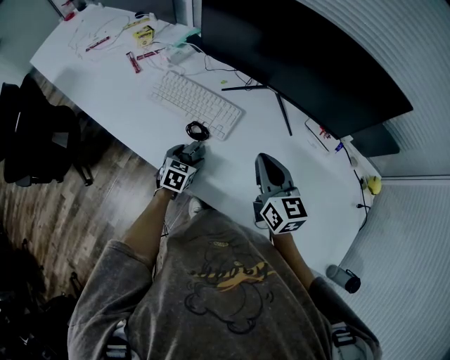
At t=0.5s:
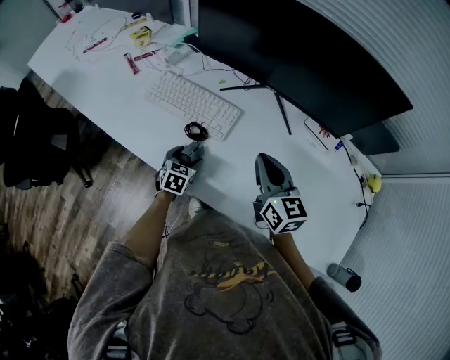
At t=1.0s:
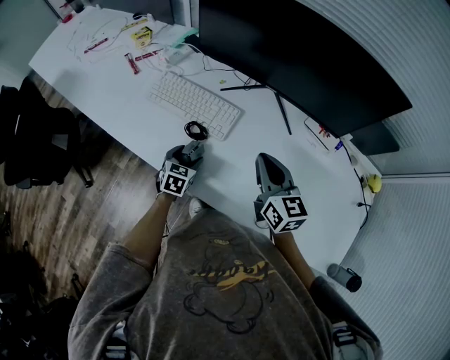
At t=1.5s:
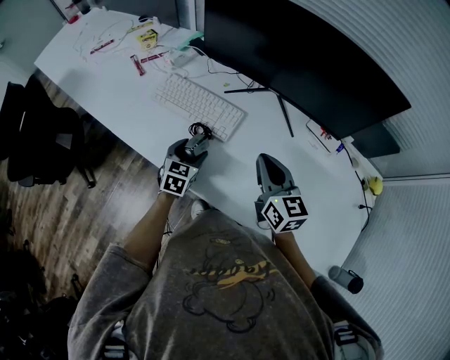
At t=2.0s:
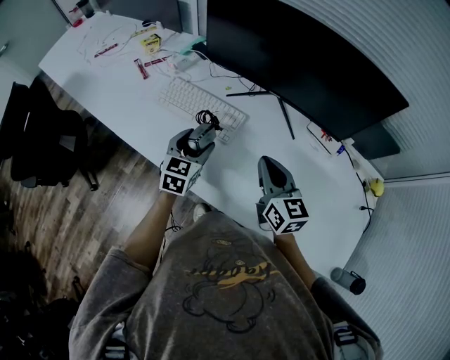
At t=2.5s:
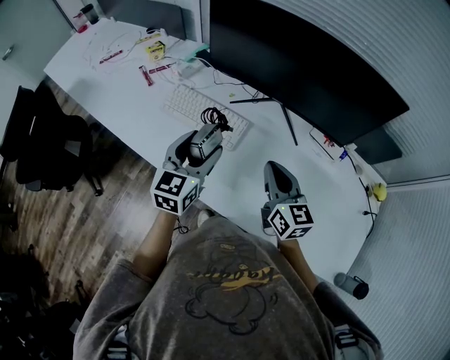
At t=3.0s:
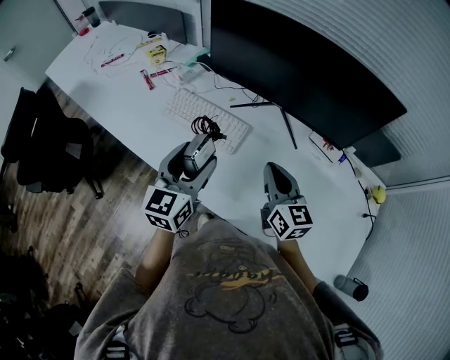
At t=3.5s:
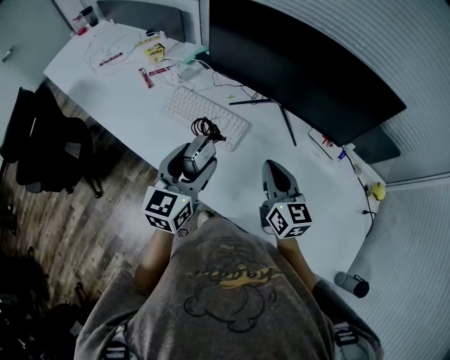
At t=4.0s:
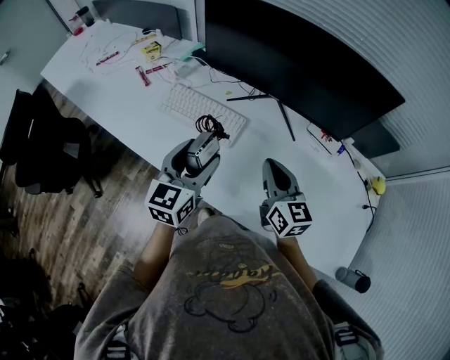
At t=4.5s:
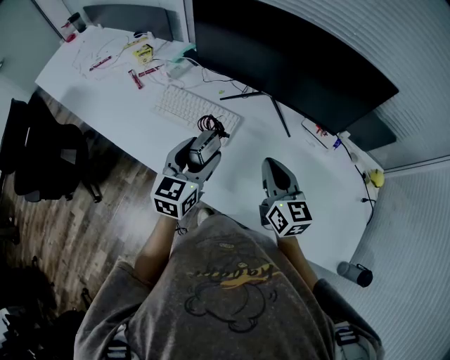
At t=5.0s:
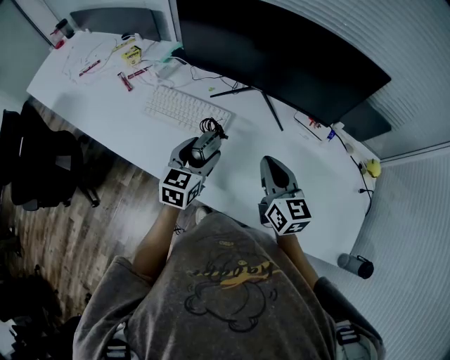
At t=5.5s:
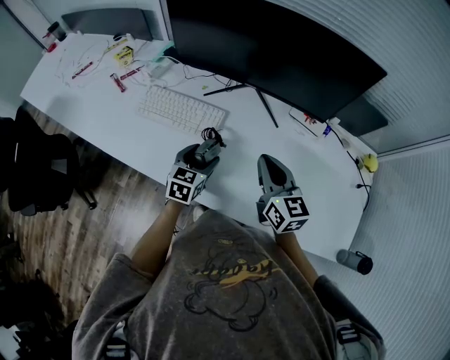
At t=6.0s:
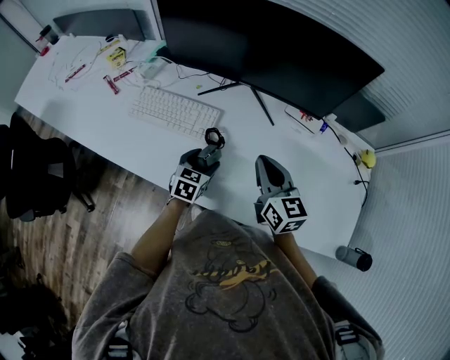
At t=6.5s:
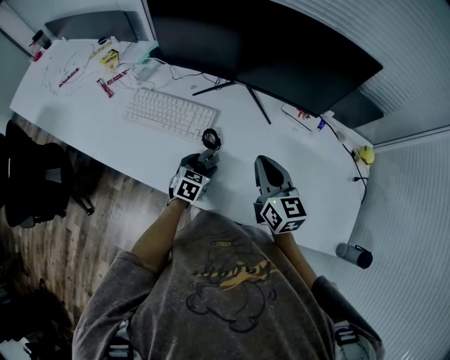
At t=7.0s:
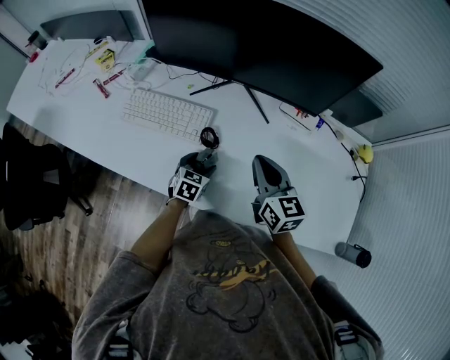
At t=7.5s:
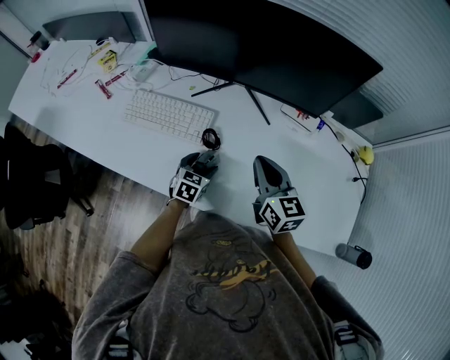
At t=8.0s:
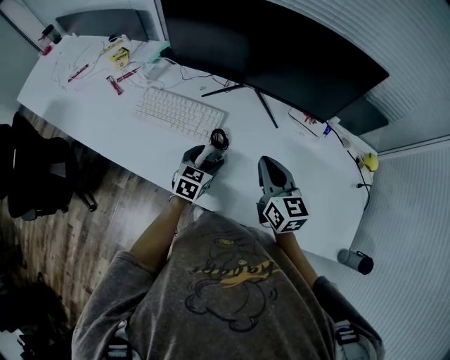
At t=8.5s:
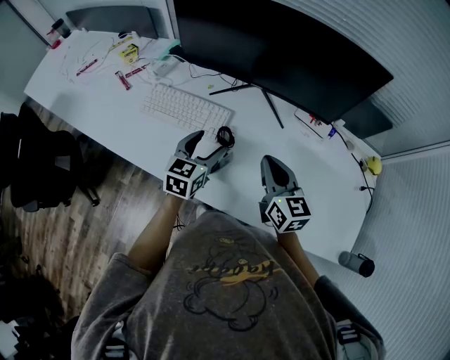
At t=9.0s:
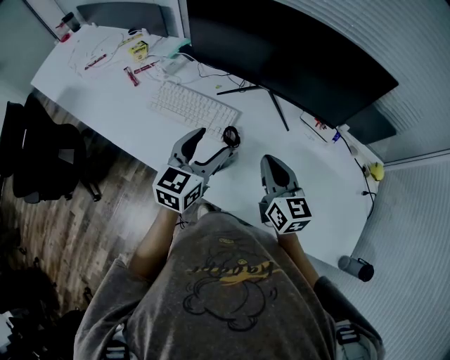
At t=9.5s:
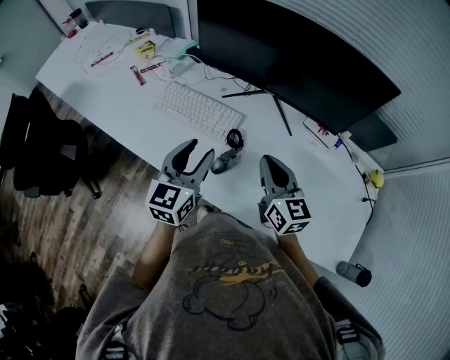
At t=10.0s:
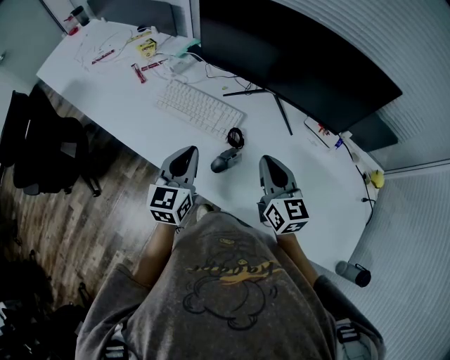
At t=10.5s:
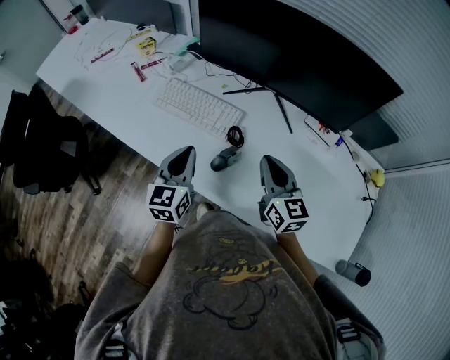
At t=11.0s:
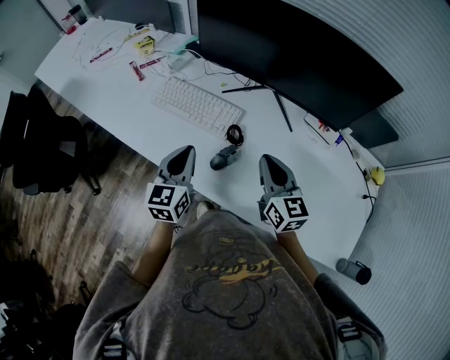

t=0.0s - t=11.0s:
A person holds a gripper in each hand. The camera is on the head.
t=0.0s - t=2.0s: The left gripper travels upward by about 15 cm, and turns by approximately 20 degrees.
t=2.0s - t=3.5s: The left gripper travels upward and backward by about 15 cm.
t=3.5s - t=5.5s: The left gripper goes roughly 20 cm downward and to the right, and swivels approximately 30 degrees.
t=5.5s - t=7.5s: The left gripper goes approximately 10 cm downward.
t=7.5s - t=9.0s: The left gripper shifts some 25 cm upward, and rotates about 30 degrees.
t=9.0s - t=11.0s: The left gripper travels to the left by some 10 cm, and closes.

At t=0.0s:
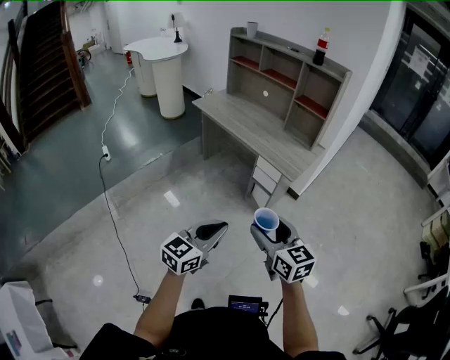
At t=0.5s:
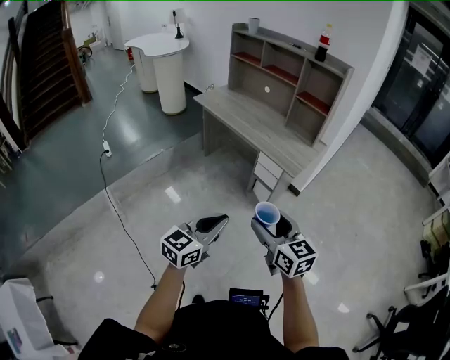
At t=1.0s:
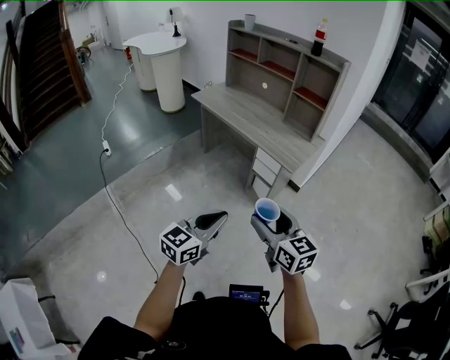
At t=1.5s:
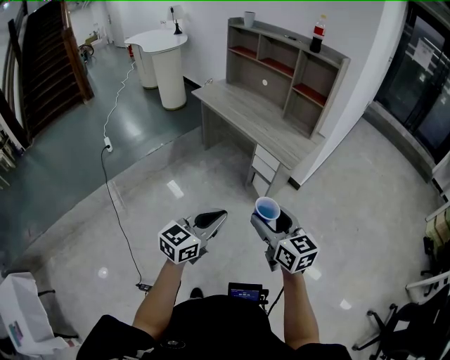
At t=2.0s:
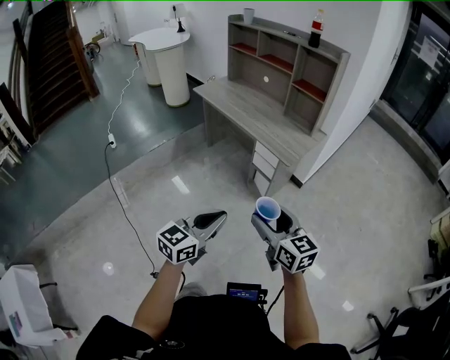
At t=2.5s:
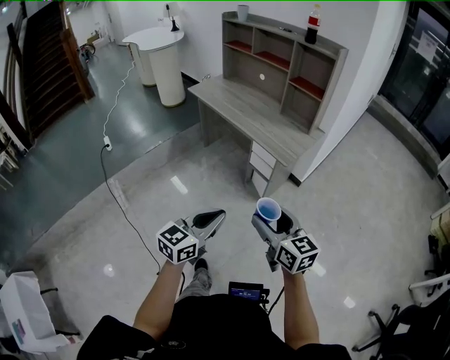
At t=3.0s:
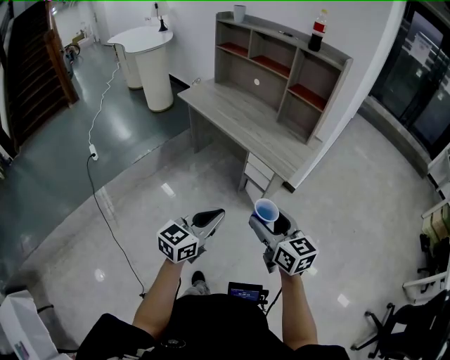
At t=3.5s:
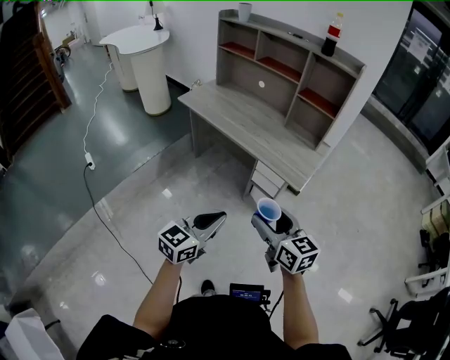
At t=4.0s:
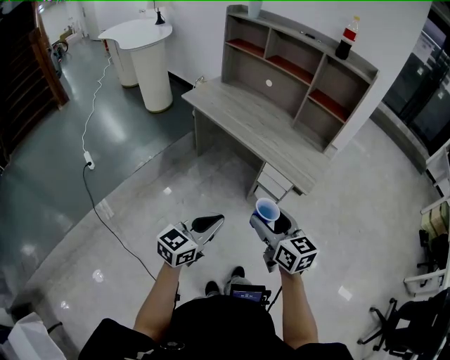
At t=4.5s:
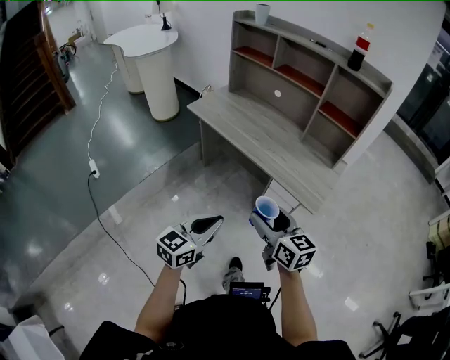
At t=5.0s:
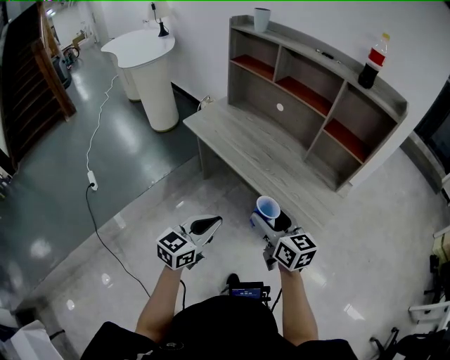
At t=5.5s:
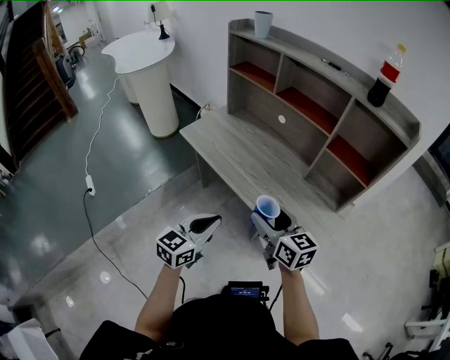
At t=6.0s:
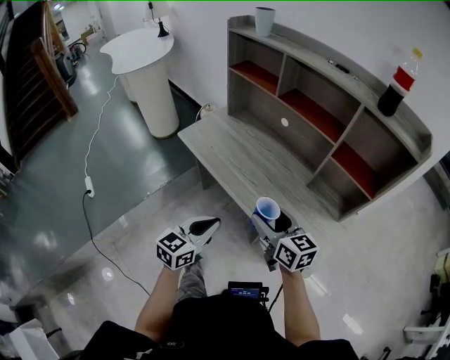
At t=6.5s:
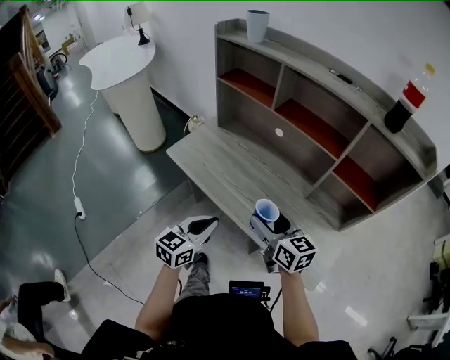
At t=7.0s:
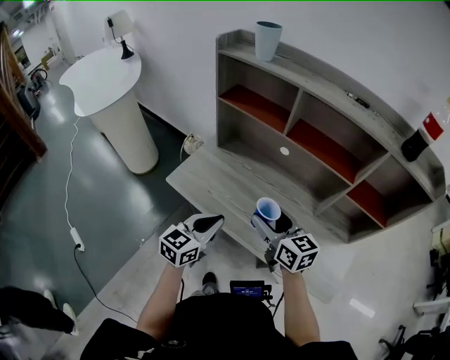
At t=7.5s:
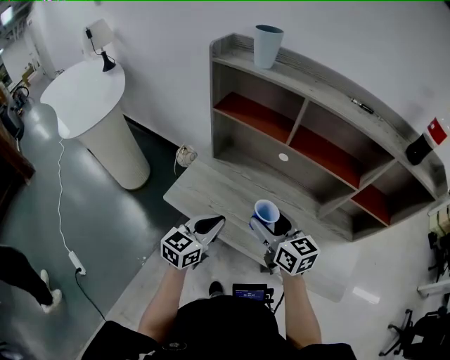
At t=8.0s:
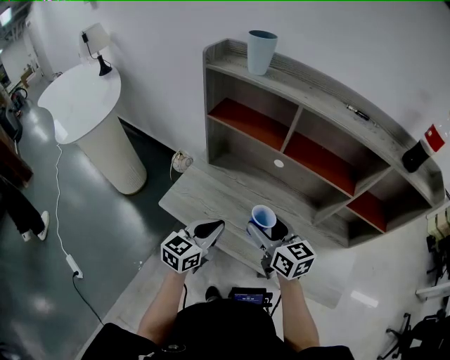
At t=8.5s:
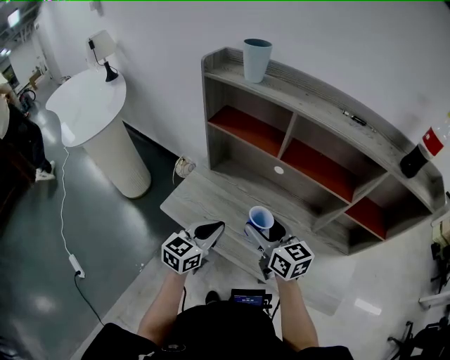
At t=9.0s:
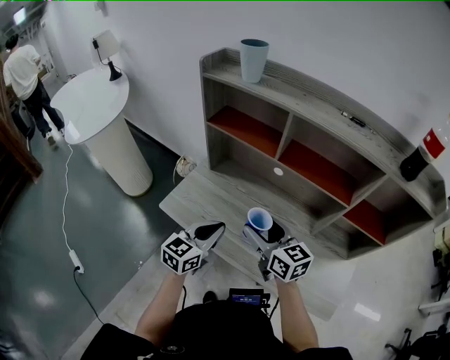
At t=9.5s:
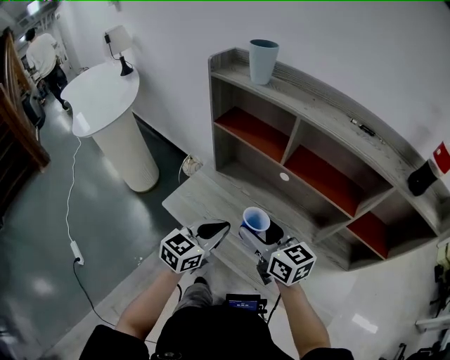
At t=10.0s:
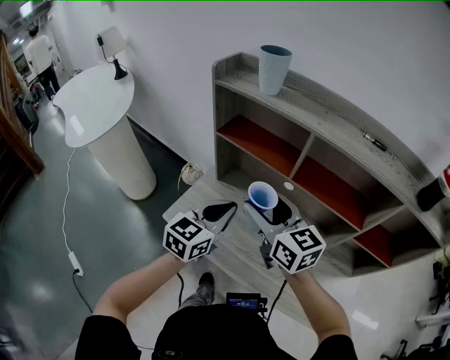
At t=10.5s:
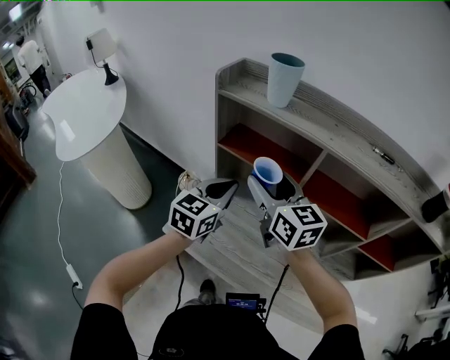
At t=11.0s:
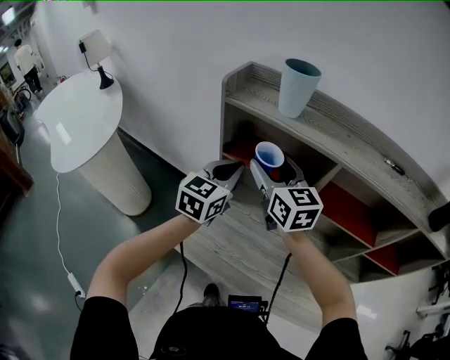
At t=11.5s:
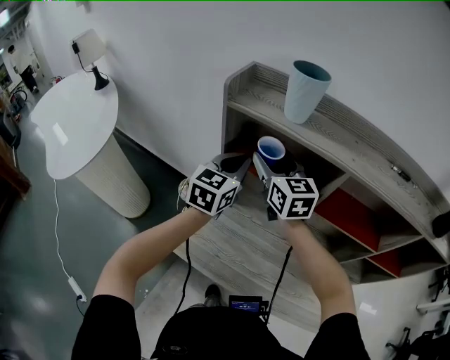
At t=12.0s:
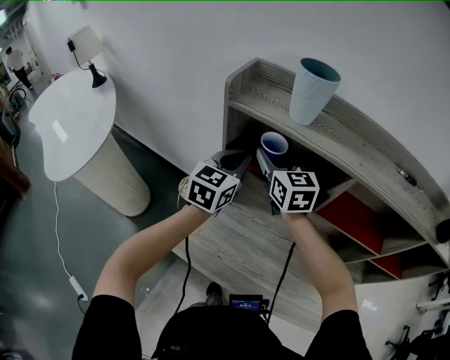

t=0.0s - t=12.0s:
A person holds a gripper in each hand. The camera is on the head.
t=0.0s - t=2.0s: The grippers both shift to the right by about 10 cm.
t=2.0s - t=4.0s: Both grippers travel together forward and to the left, roughly 30 cm.
t=4.0s - t=6.0s: The grippers both shift forward by about 40 cm.
t=6.0s - t=8.0s: Both grippers move forward and to the left, roughly 30 cm.
t=8.0s - t=10.0s: The right gripper shifts about 15 cm upward and forward. Meanwhile the left gripper is displaced forward and upward by some 15 cm.
t=10.0s - t=12.0s: The two grippers go roughly 25 cm forward. The right gripper rotates roughly 20 degrees.

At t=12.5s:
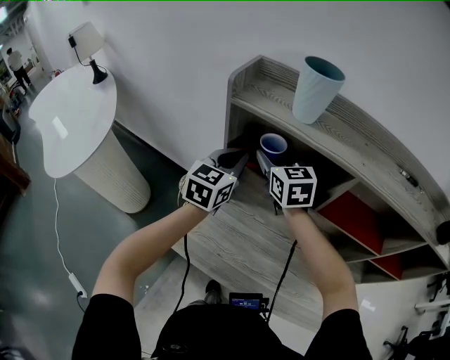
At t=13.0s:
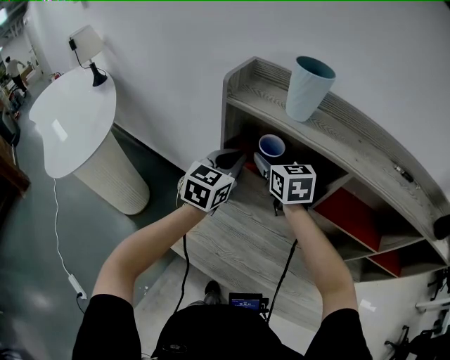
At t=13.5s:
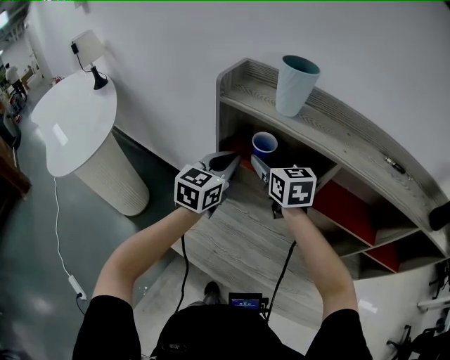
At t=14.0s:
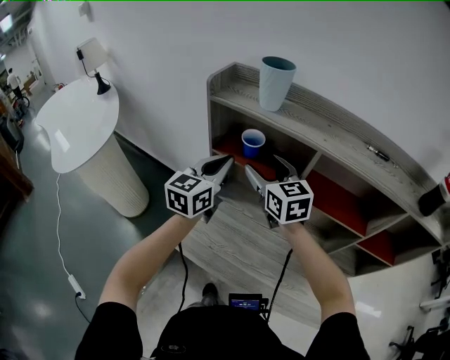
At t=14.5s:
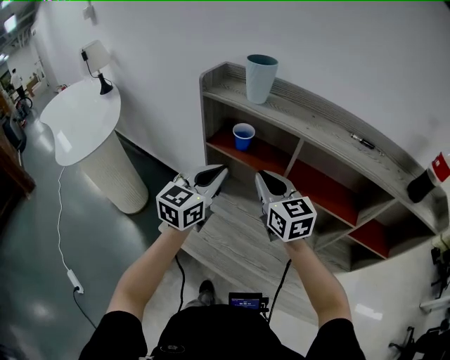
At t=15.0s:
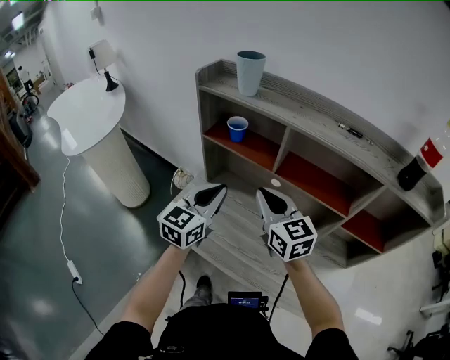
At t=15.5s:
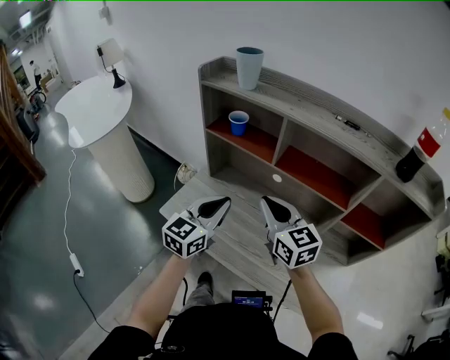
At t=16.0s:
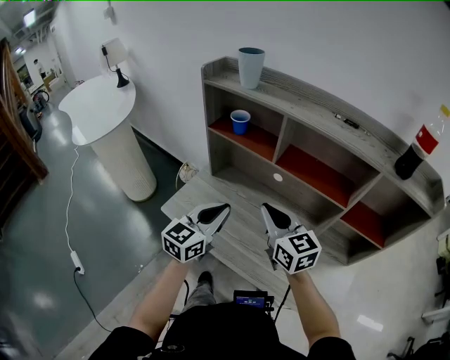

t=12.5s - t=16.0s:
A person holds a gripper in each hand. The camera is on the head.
t=12.5s - t=14.5s: The right gripper shifts about 20 cm backward and to the right, and closes up. Meanwhile the left gripper shifts approximately 15 cm backward.
t=14.5s - t=16.0s: The right gripper heads backward and to the right, covering roughly 15 cm, while the left gripper is displaced backward, downward and to the right by roughly 20 cm.
